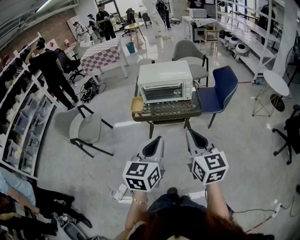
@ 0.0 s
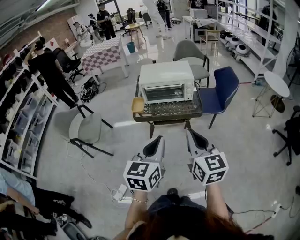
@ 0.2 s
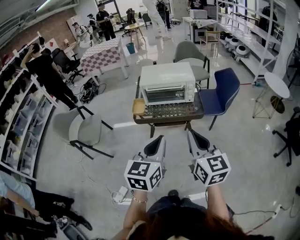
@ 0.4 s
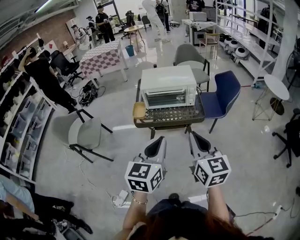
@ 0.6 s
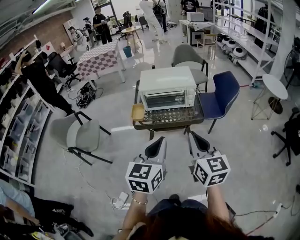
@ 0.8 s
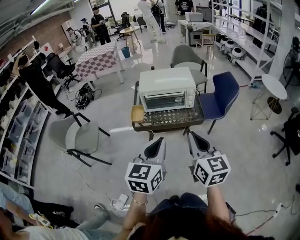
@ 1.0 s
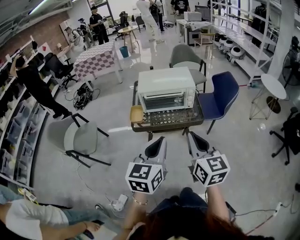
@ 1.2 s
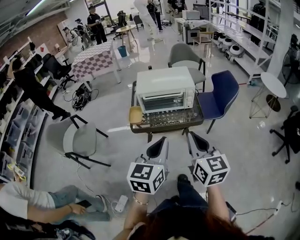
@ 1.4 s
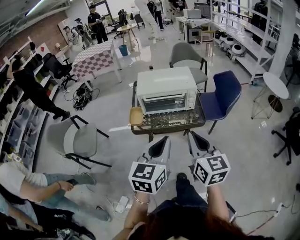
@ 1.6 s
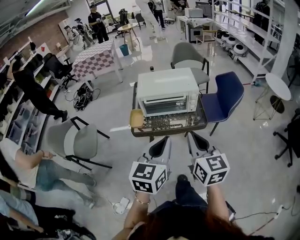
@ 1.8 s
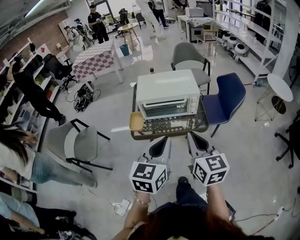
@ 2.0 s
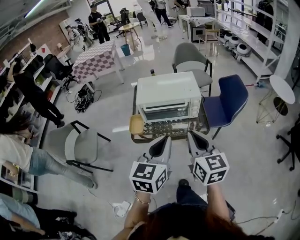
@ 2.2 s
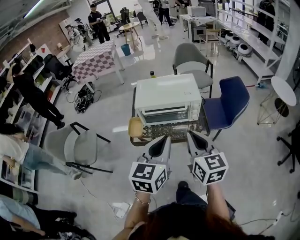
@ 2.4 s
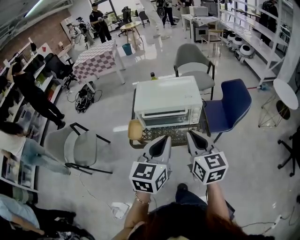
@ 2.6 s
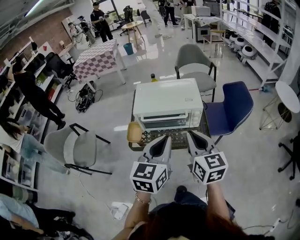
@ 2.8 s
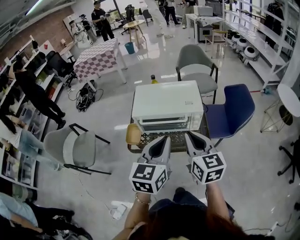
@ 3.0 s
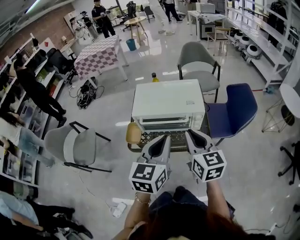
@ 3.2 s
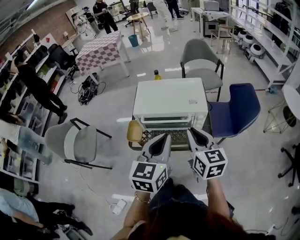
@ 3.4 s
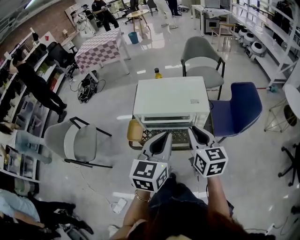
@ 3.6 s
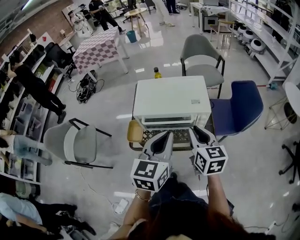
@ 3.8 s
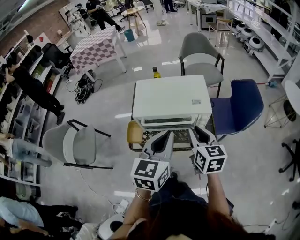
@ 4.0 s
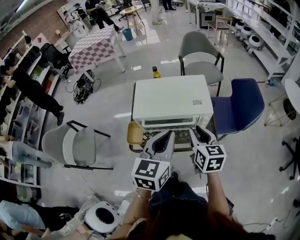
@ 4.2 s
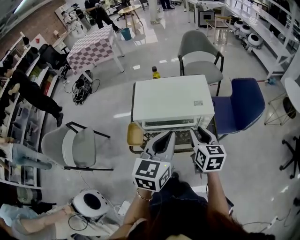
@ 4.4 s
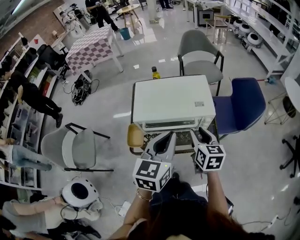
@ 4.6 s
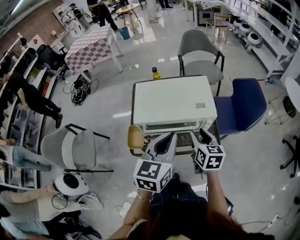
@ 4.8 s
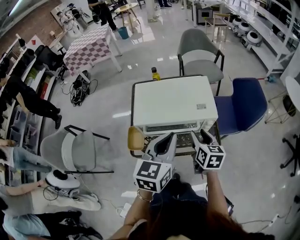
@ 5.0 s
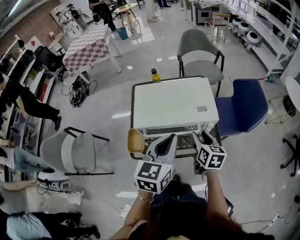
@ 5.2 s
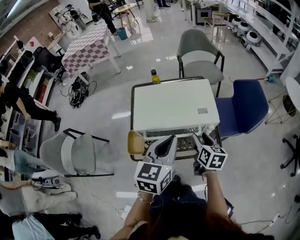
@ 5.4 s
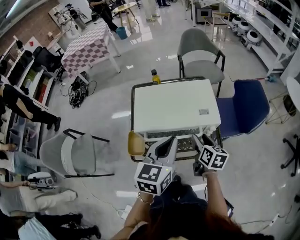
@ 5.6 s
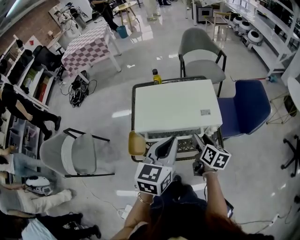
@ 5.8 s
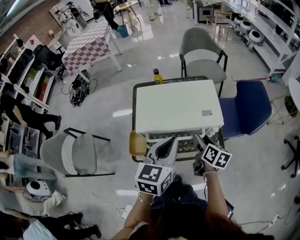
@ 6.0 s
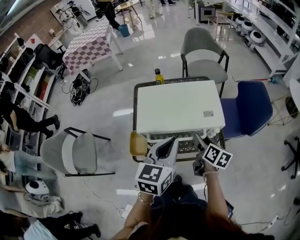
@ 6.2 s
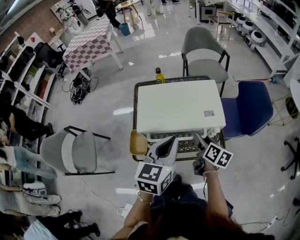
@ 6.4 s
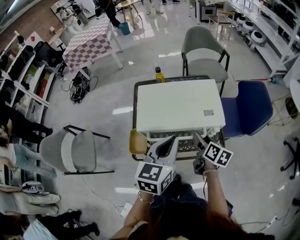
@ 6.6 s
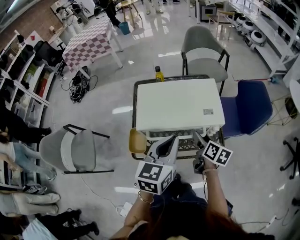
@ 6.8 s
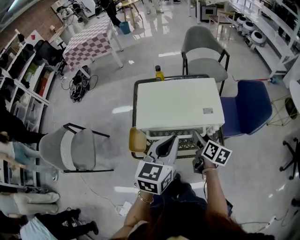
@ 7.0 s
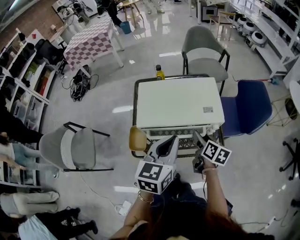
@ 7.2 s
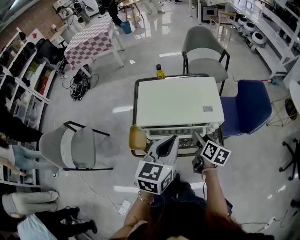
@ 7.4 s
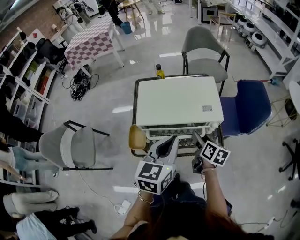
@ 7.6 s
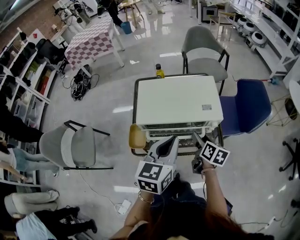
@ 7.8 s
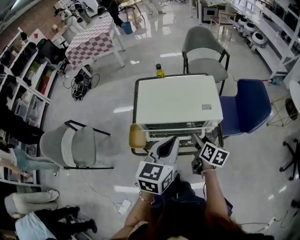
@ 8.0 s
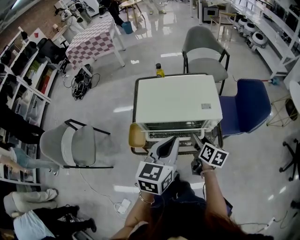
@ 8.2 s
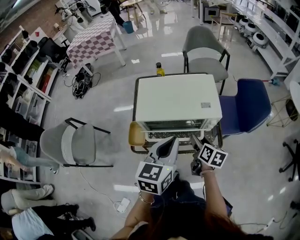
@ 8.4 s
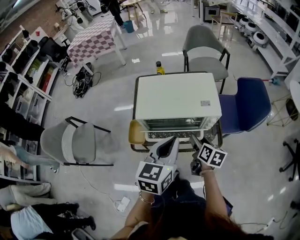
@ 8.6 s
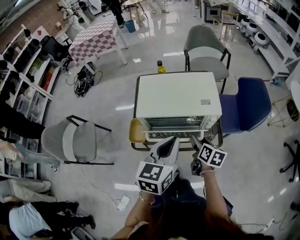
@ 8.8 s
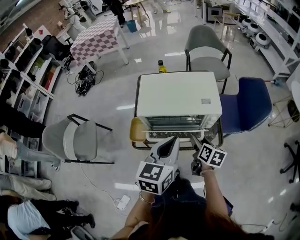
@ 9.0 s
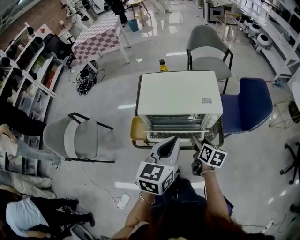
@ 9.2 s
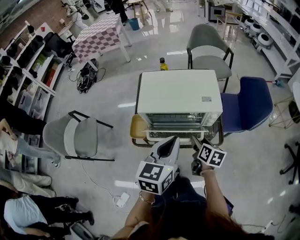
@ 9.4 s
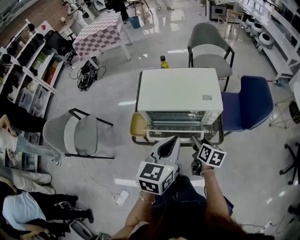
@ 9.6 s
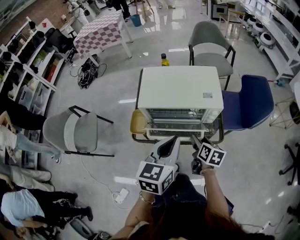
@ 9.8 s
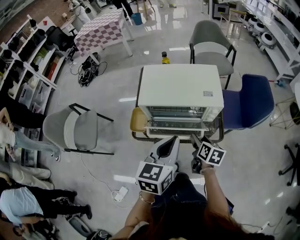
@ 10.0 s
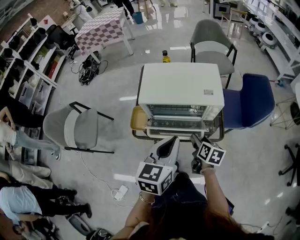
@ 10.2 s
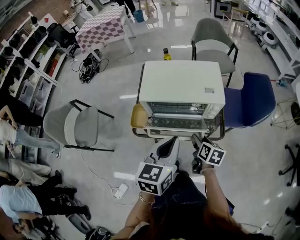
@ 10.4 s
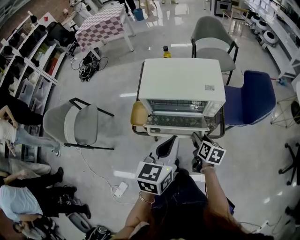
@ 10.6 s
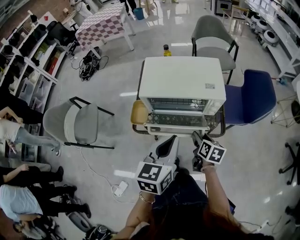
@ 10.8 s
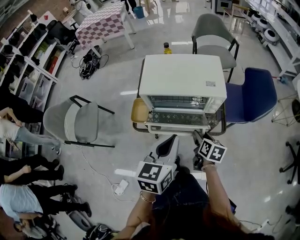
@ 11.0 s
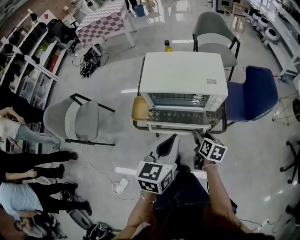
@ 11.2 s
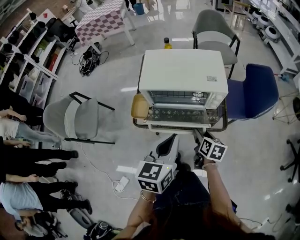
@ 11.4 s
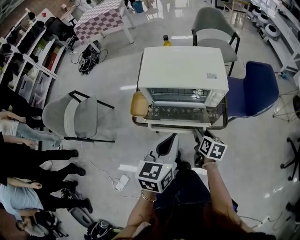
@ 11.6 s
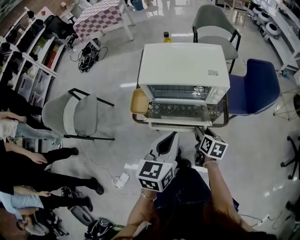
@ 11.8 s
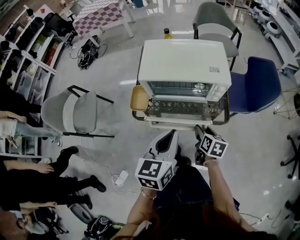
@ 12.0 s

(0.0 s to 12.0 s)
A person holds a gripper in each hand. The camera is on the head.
0.0 s - 1.6 s: Both grippers move forward, approximately 10 cm.
1.6 s - 3.0 s: The two grippers go approximately 20 cm forward.
3.0 s - 4.4 s: The right gripper travels forward and downward by some 15 cm, and opens its fingers. Meanwhile the left gripper moves forward, roughly 10 cm.
4.4 s - 6.0 s: The right gripper travels downward and forward by roughly 10 cm, swivels some 30 degrees, and opens. Meanwhile the left gripper goes some 5 cm forward.
6.0 s - 7.6 s: The grippers make only small movements.
7.6 s - 9.0 s: The right gripper ends up about 5 cm from where it was.
9.0 s - 10.4 s: The left gripper shifts by some 5 cm; the right gripper moves roughly 5 cm.
10.4 s - 12.0 s: The left gripper heads downward, covering approximately 5 cm; the right gripper ends up approximately 5 cm from where it was.

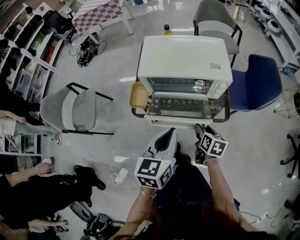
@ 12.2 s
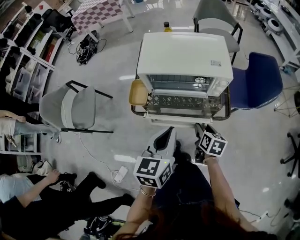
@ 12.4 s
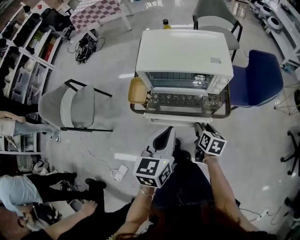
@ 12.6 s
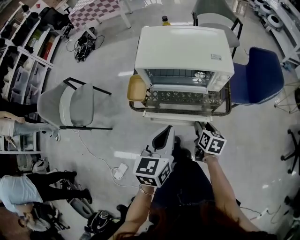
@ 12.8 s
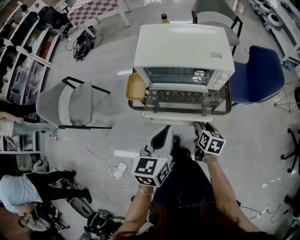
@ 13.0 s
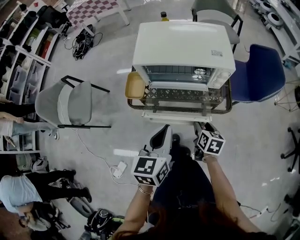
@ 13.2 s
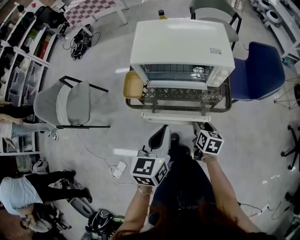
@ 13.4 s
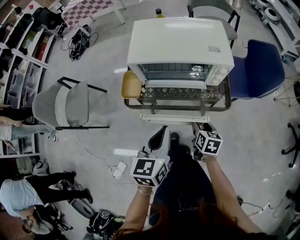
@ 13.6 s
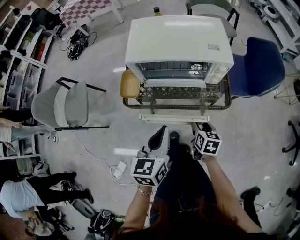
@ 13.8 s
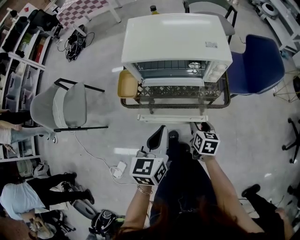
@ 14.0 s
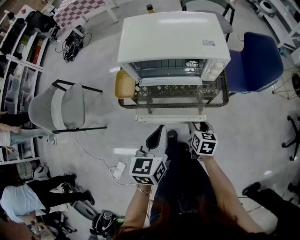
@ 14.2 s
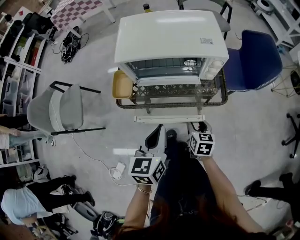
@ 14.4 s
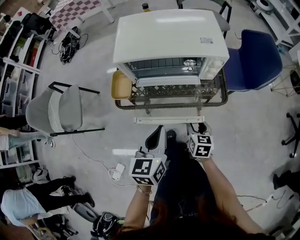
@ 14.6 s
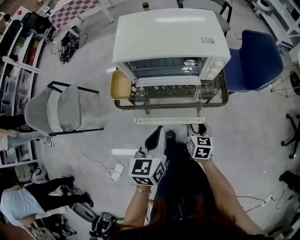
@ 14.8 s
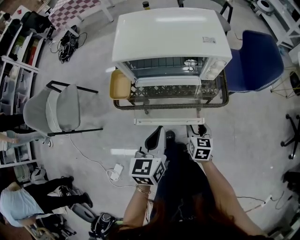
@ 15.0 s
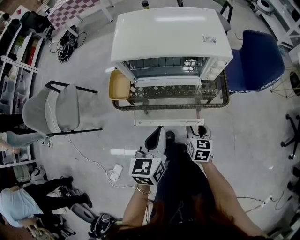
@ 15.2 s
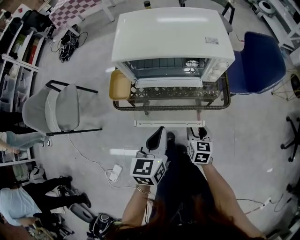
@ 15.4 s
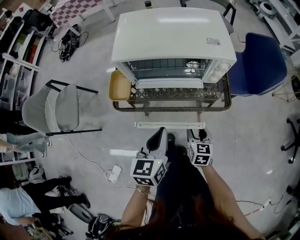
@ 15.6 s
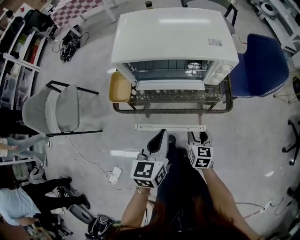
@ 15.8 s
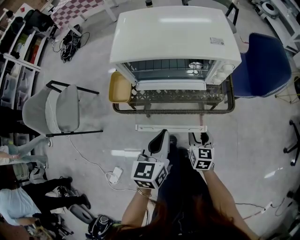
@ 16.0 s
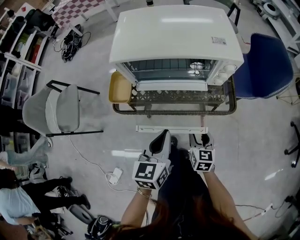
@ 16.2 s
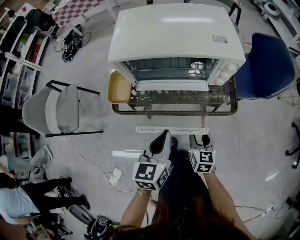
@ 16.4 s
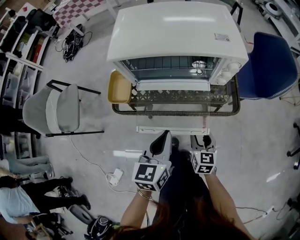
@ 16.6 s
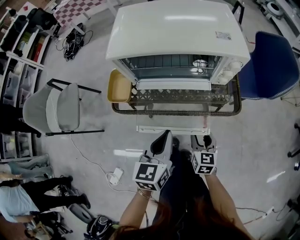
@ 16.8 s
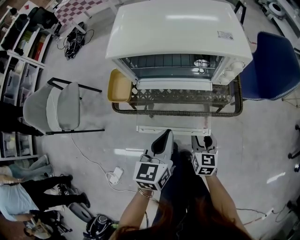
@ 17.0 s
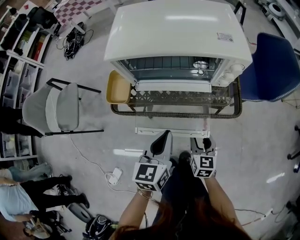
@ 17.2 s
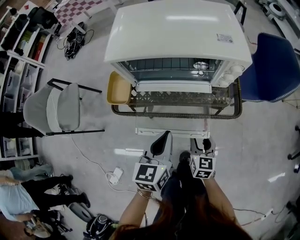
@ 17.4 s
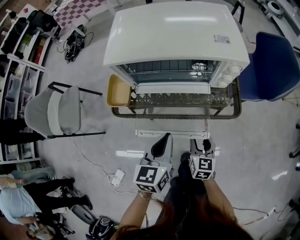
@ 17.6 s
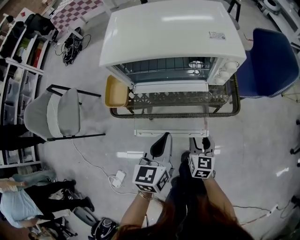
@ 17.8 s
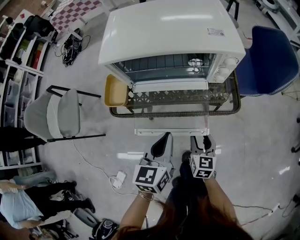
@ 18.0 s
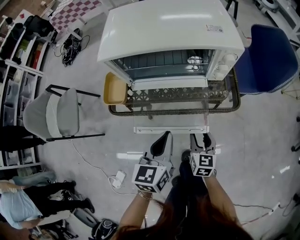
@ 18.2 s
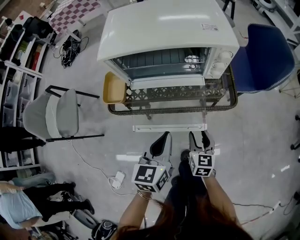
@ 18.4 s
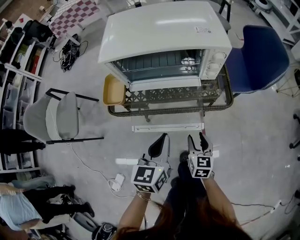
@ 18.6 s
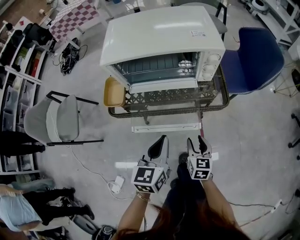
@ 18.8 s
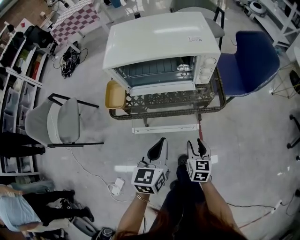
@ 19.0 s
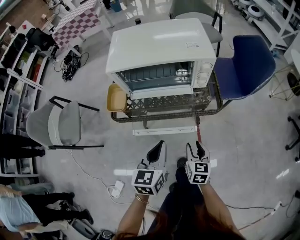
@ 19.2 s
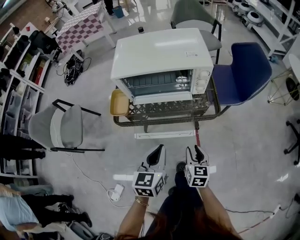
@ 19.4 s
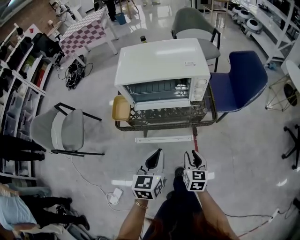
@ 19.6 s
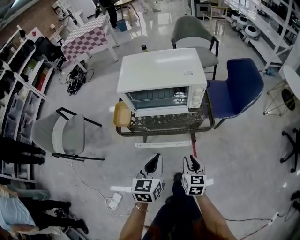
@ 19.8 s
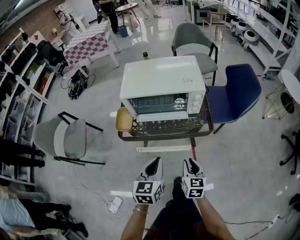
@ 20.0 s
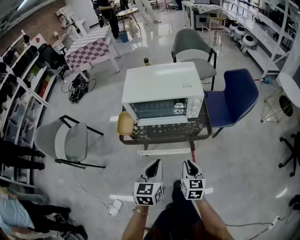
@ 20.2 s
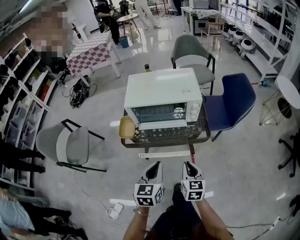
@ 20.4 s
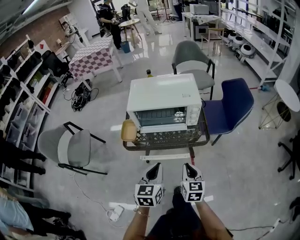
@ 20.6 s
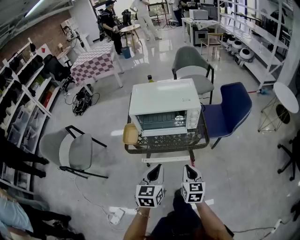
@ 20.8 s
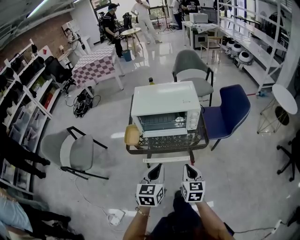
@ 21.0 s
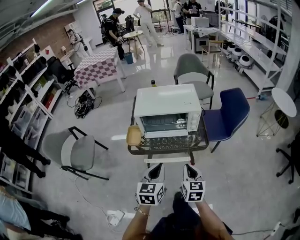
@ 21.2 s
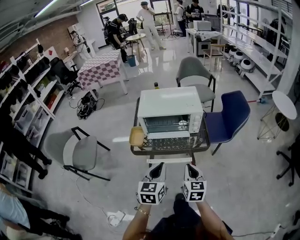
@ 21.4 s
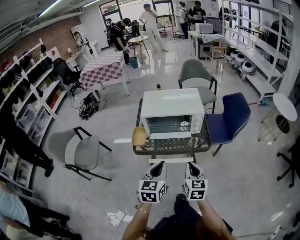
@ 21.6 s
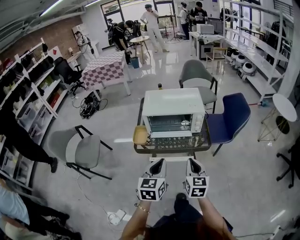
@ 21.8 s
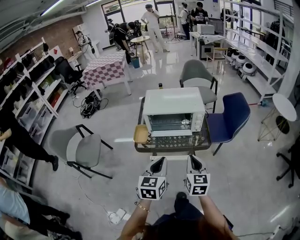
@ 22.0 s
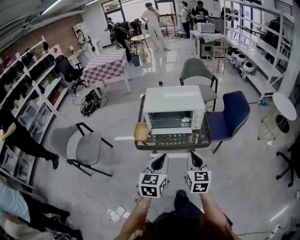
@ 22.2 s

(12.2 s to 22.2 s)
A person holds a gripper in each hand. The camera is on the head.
12.2 s - 13.6 s: The two grippers go about 5 cm downward.
13.6 s - 15.0 s: The left gripper moves downward, approximately 5 cm.
15.0 s - 16.4 s: The left gripper shifts by about 5 cm.
16.4 s - 18.0 s: The grippers move only a little.
18.0 s - 19.4 s: The right gripper moves upward and backward, roughly 10 cm; the left gripper is displaced backward and upward by about 10 cm.
19.4 s - 20.8 s: The left gripper heads upward, covering roughly 10 cm. Meanwhile the right gripper moves upward, roughly 15 cm, and closes its fingers.
20.8 s - 22.2 s: The left gripper is displaced upward and backward by about 10 cm. The right gripper moves upward, about 15 cm.

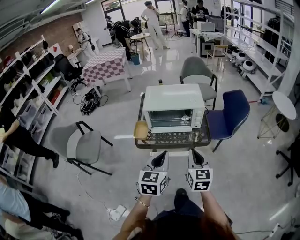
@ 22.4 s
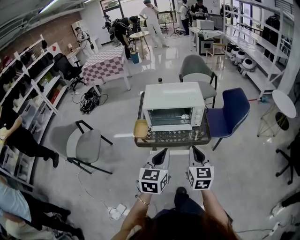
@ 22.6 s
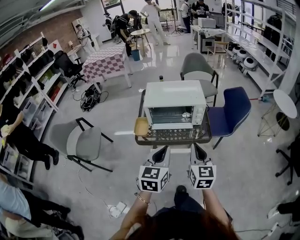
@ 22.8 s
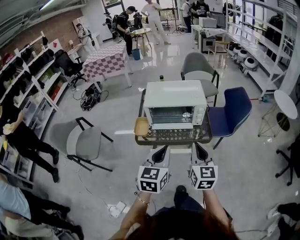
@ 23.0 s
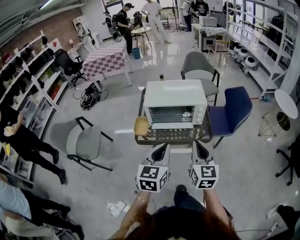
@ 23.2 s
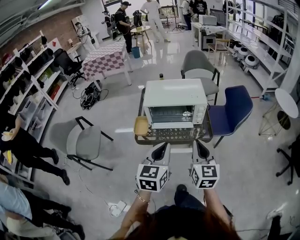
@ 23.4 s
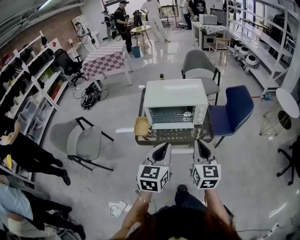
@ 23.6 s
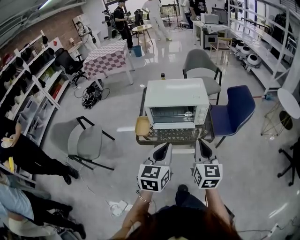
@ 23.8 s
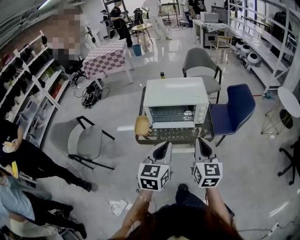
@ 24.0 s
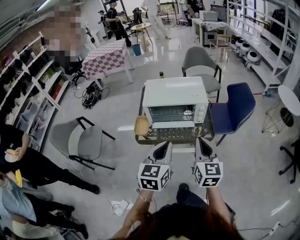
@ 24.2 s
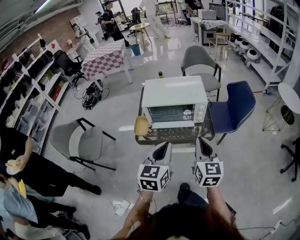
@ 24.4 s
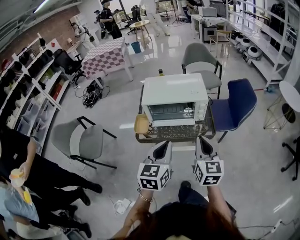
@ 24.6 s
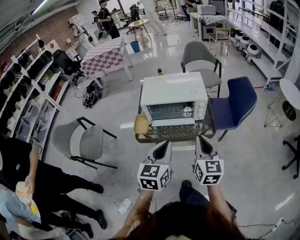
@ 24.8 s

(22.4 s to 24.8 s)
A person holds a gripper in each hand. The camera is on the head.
22.4 s - 23.6 s: The right gripper heads upward, covering roughly 5 cm.
23.6 s - 24.8 s: The grippers move only a little.
